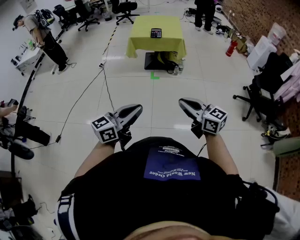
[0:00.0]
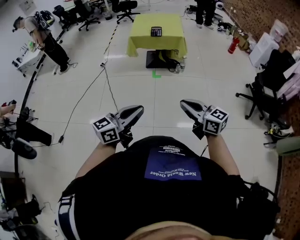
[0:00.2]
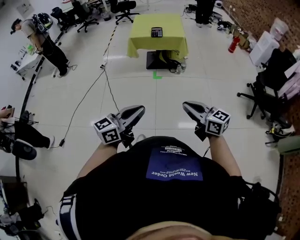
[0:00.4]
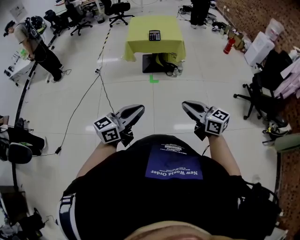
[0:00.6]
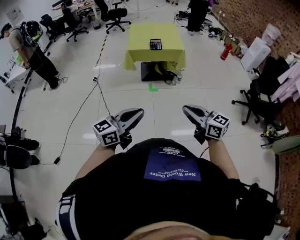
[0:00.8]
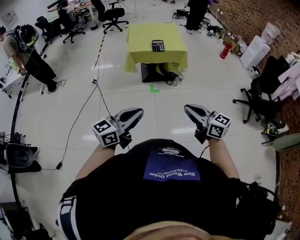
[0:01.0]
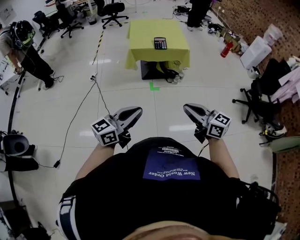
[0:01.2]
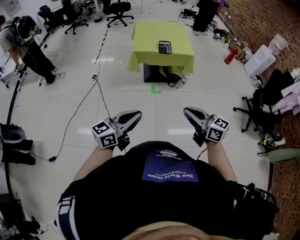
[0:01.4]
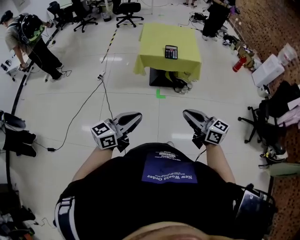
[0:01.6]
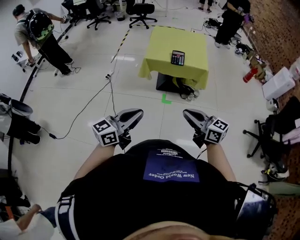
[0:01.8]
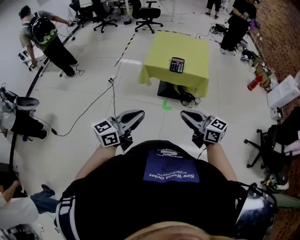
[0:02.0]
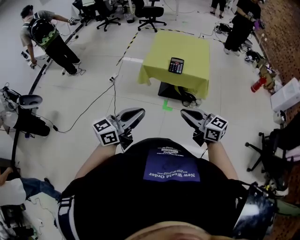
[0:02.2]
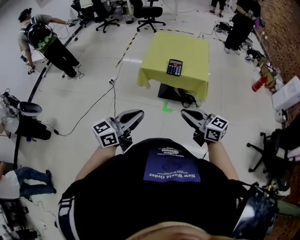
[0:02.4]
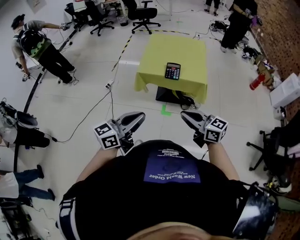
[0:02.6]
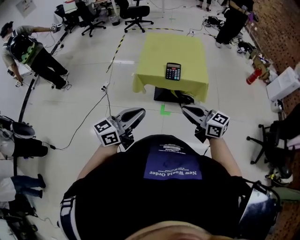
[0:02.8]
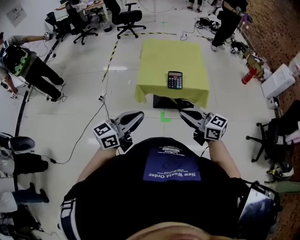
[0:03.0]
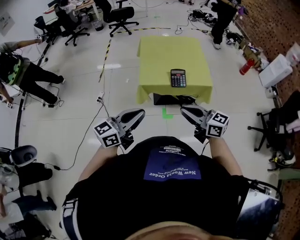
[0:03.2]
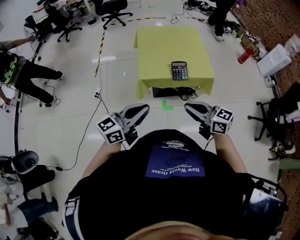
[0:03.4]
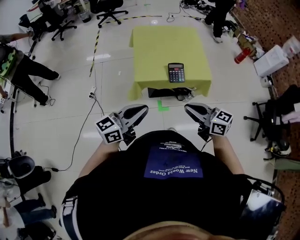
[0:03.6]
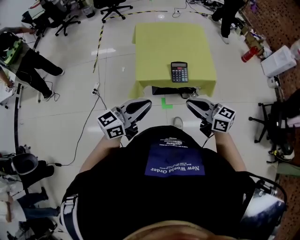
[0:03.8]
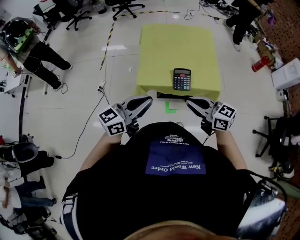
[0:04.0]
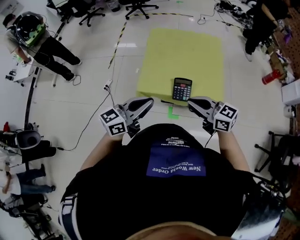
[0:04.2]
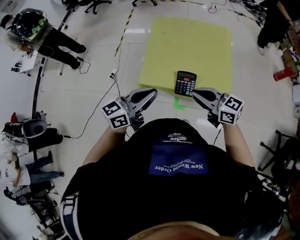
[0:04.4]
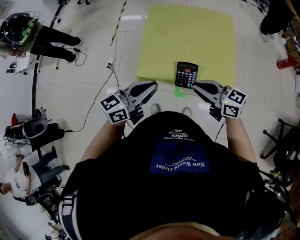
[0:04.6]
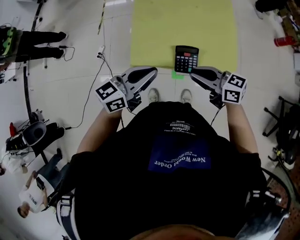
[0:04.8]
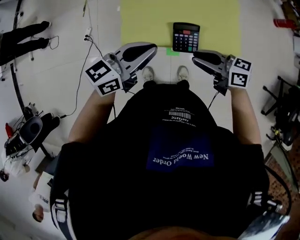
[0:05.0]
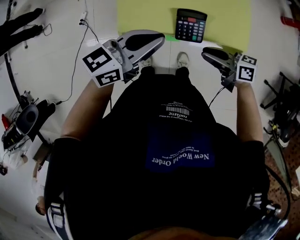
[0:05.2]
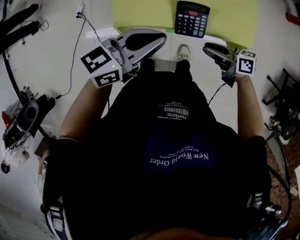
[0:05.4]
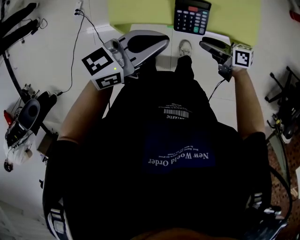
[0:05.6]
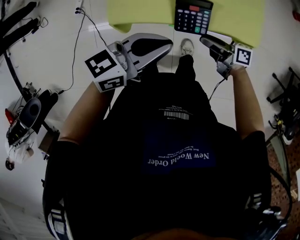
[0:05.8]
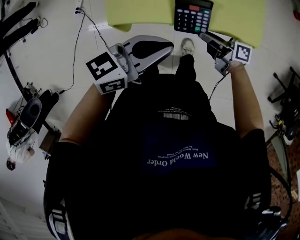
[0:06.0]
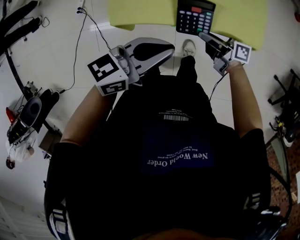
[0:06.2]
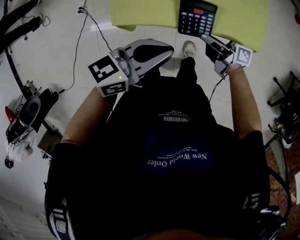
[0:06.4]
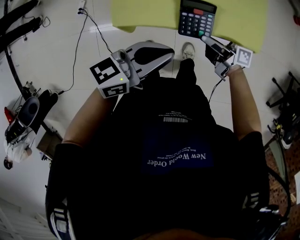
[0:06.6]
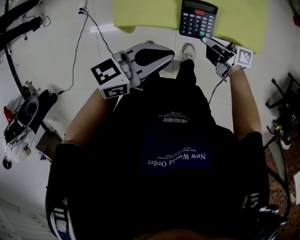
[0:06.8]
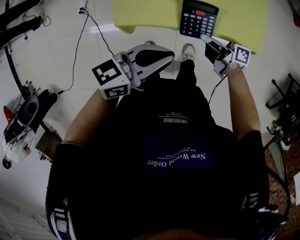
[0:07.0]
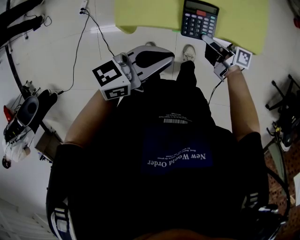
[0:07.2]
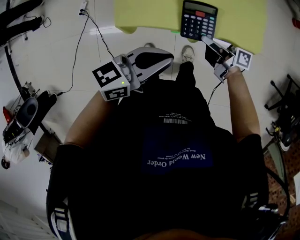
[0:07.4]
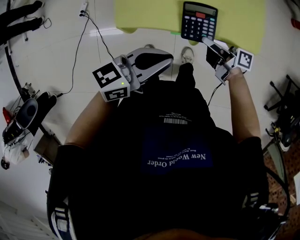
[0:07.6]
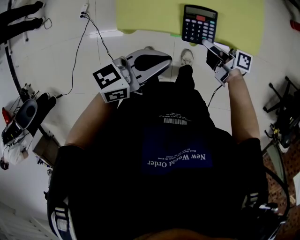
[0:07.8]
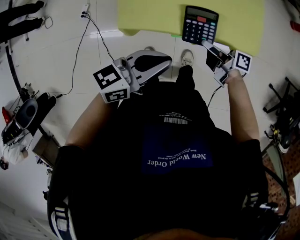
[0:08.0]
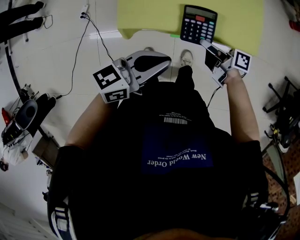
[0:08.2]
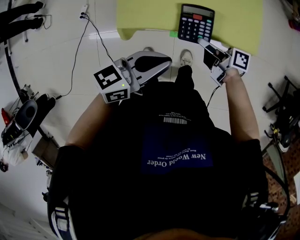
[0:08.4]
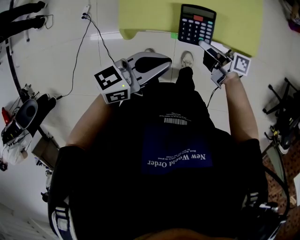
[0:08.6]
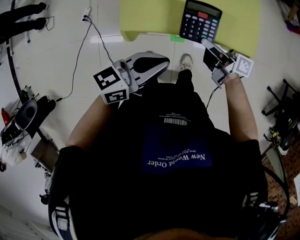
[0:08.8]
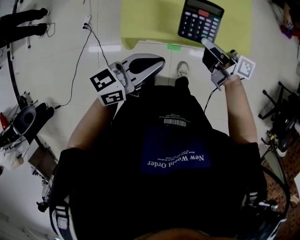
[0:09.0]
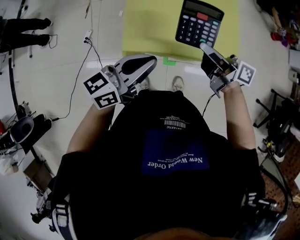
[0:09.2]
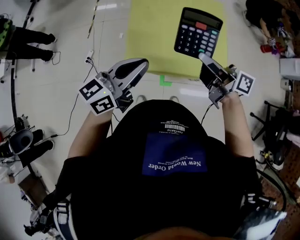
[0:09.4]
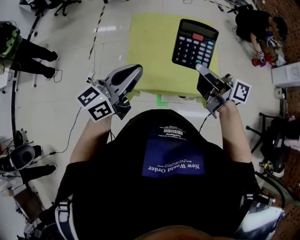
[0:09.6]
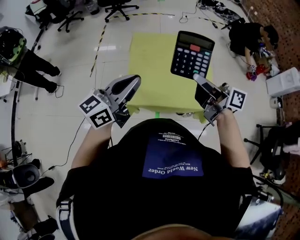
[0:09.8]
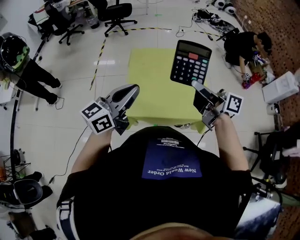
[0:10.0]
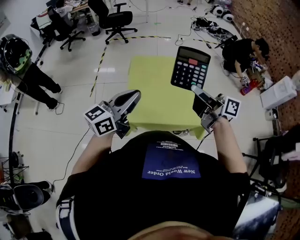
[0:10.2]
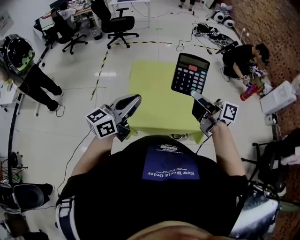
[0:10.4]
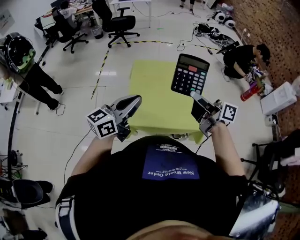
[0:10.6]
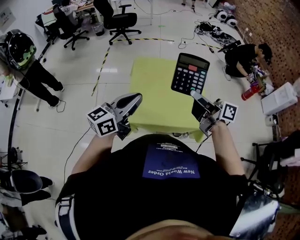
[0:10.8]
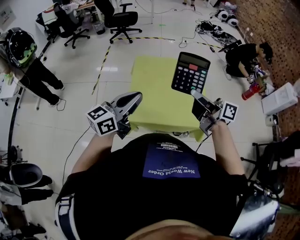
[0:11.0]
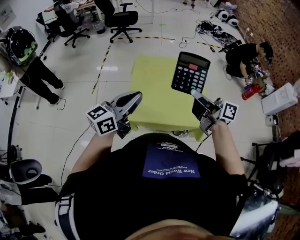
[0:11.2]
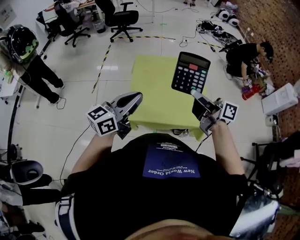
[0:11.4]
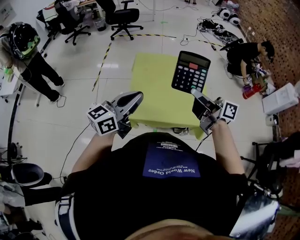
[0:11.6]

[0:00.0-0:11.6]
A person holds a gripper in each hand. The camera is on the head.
0:00.0 to 0:01.4: Both grippers travel together forward and to the left, about 35 cm.
0:01.4 to 0:02.8: The right gripper travels forward by approximately 30 cm. Meanwhile the left gripper moves forward and to the right, about 30 cm.
0:02.8 to 0:04.4: Both grippers travel together forward, about 35 cm.
0:04.4 to 0:05.8: The right gripper shifts roughly 30 cm downward, twists roughly 60 degrees clockwise, seen from behind, and opens up. The left gripper shifts approximately 15 cm downward, and swivels approximately 30 degrees.
0:05.8 to 0:07.2: The right gripper closes its fingers.
0:07.2 to 0:08.8: The right gripper heads upward, covering some 10 cm.
0:08.8 to 0:10.2: The two grippers go some 30 cm upward. The left gripper turns by roughly 30 degrees. The right gripper turns by about 30 degrees.
0:10.2 to 0:11.6: There are only small adjustments of the grippers.

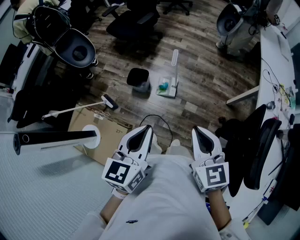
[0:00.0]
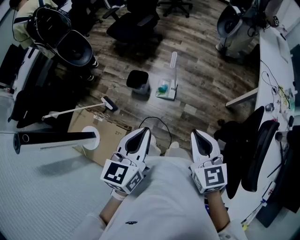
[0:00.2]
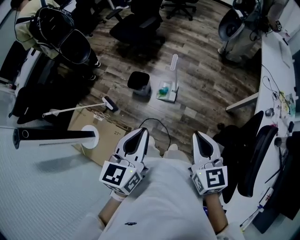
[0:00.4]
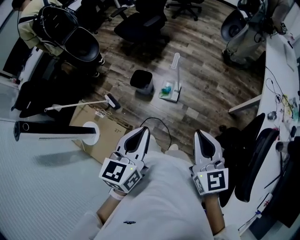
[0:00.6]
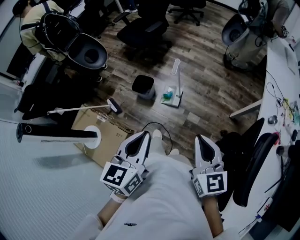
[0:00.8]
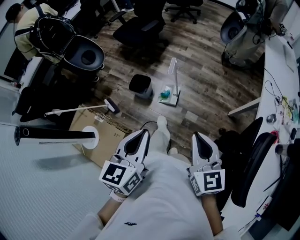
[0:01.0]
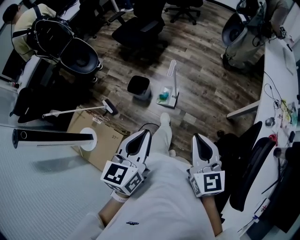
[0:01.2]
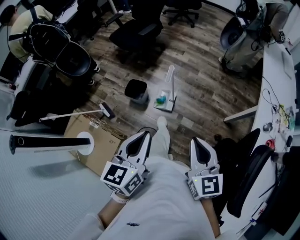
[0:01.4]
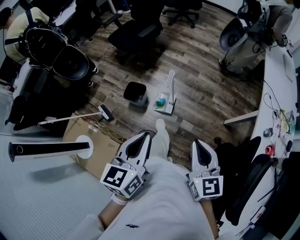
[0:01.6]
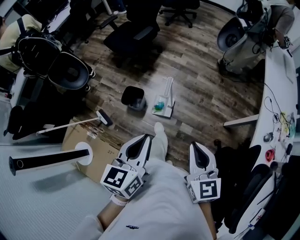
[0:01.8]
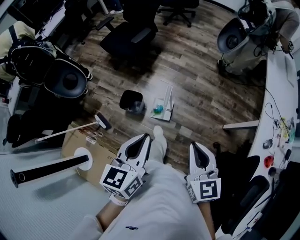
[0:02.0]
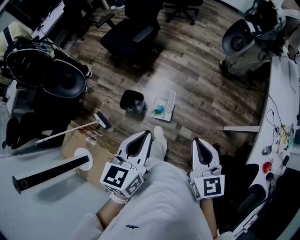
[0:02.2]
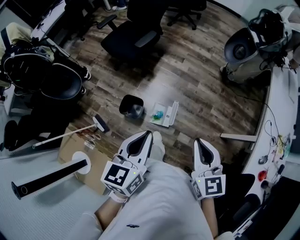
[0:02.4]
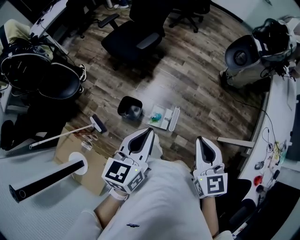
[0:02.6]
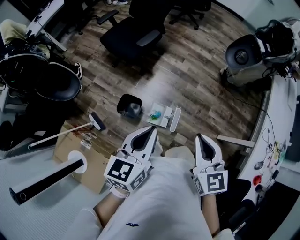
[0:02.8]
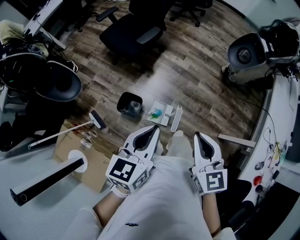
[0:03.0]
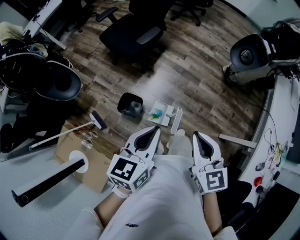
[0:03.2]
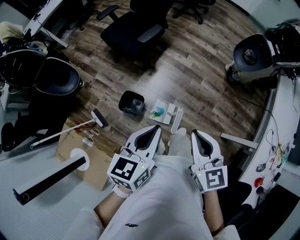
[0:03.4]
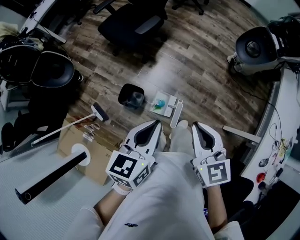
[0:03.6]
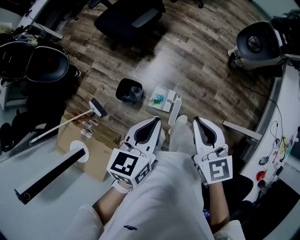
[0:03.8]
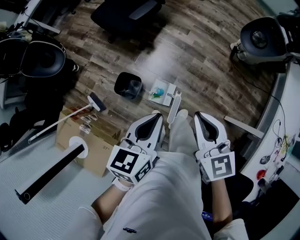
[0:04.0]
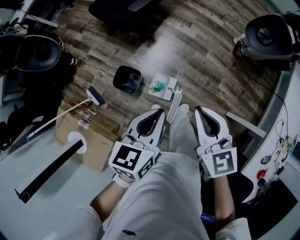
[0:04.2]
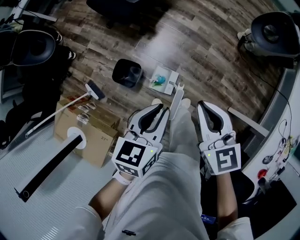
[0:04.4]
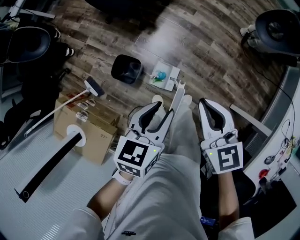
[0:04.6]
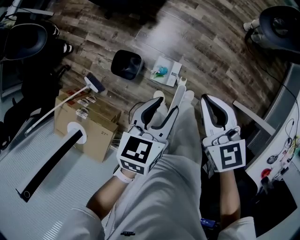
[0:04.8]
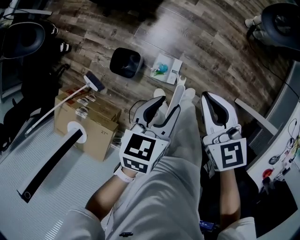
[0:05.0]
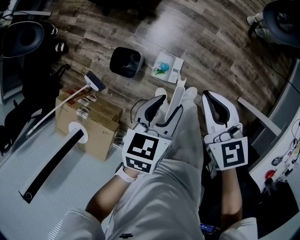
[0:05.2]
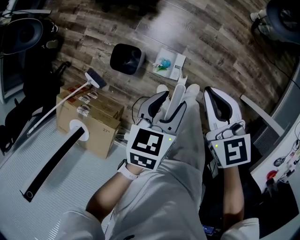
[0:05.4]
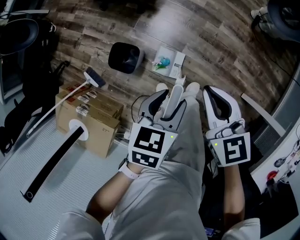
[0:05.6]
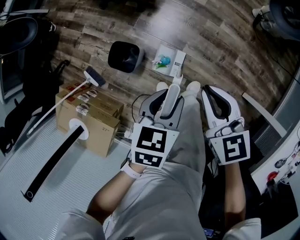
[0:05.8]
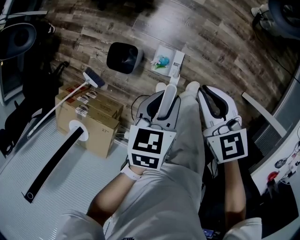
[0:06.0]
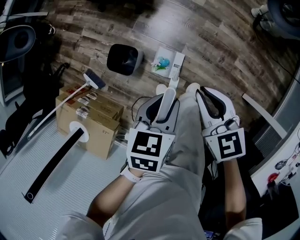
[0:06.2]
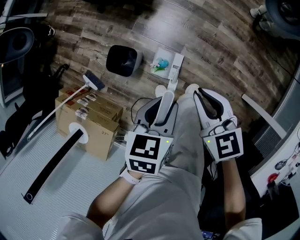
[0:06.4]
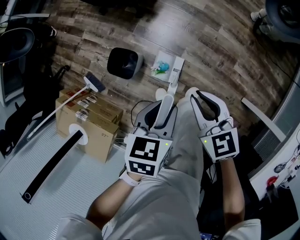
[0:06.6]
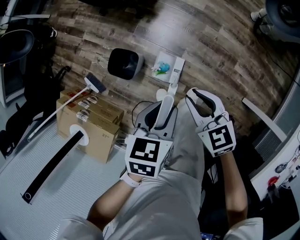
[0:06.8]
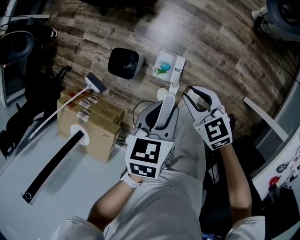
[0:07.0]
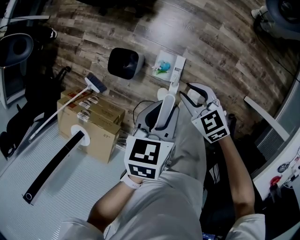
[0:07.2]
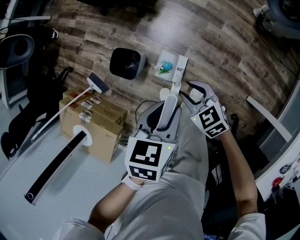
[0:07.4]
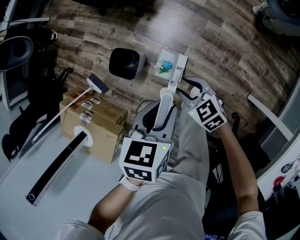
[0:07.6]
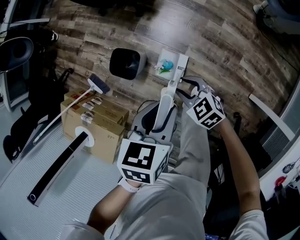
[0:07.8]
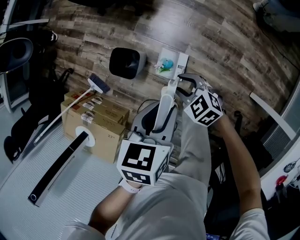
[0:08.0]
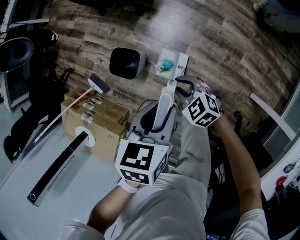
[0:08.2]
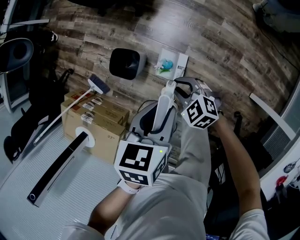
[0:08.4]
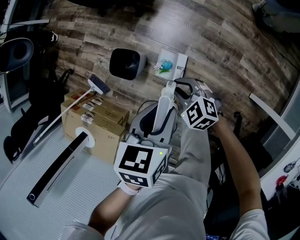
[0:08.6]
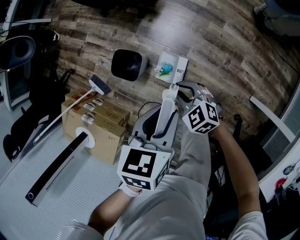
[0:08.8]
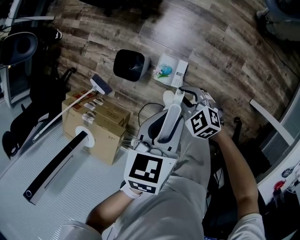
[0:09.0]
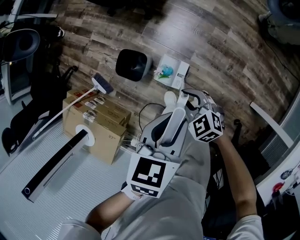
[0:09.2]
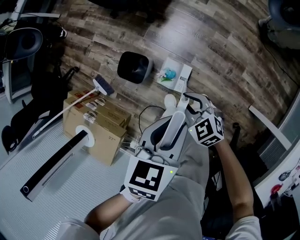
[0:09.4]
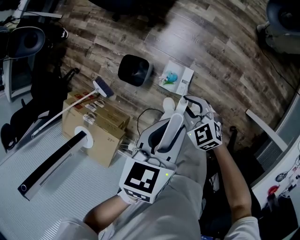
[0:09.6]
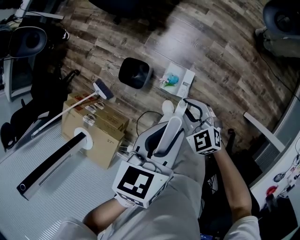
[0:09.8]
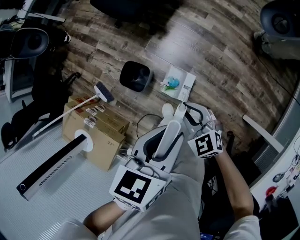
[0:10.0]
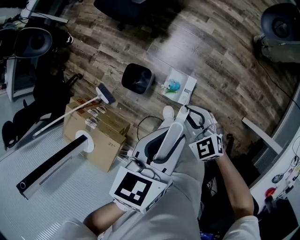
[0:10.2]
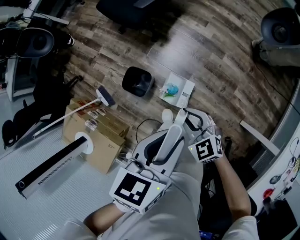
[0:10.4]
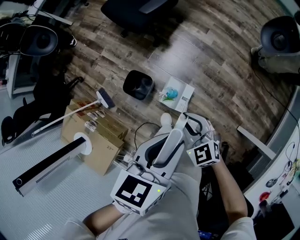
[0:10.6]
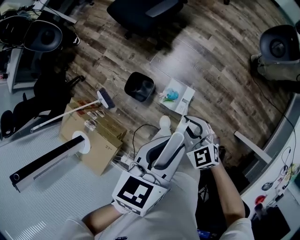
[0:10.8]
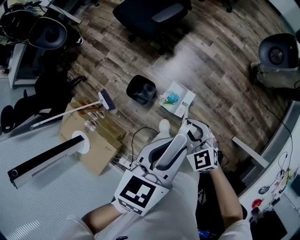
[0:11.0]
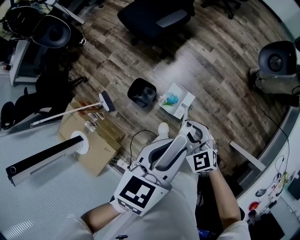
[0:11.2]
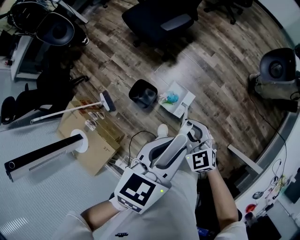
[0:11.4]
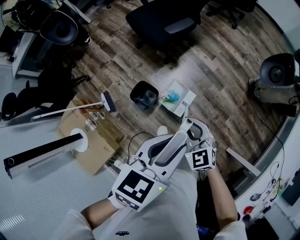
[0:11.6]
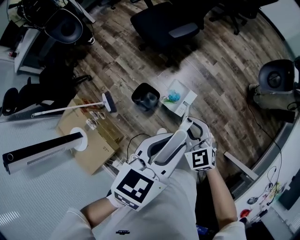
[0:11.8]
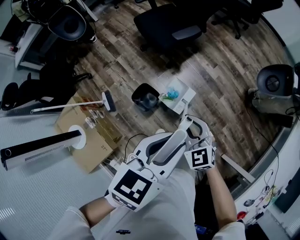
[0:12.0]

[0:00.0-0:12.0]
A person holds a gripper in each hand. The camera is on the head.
0:00.0 to 0:01.6: The grippers both shift forward and to the right by roughly 10 cm.
0:01.6 to 0:03.0: The two grippers go about 30 cm forward.
0:03.0 to 0:04.4: The left gripper moves downward and to the right, about 15 cm. Meanwhile the right gripper goes approximately 15 cm downward and forward.
0:04.4 to 0:06.0: The grippers both shift downward by roughly 15 cm.
0:06.0 to 0:07.6: The right gripper moves downward, roughly 15 cm, turns by approximately 20 degrees, and opens.
0:07.6 to 0:09.0: The grippers stay close to where they were, moving slightly.
0:09.0 to 0:10.4: Both grippers move upward, some 15 cm.
0:10.4 to 0:12.0: The grippers both shift upward and to the left by approximately 15 cm.
